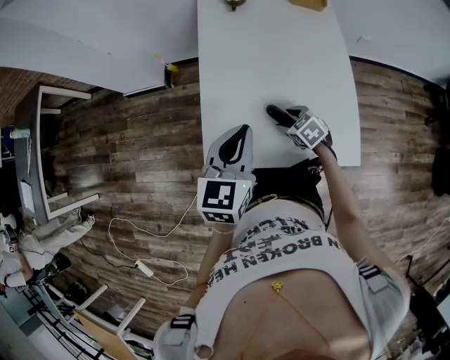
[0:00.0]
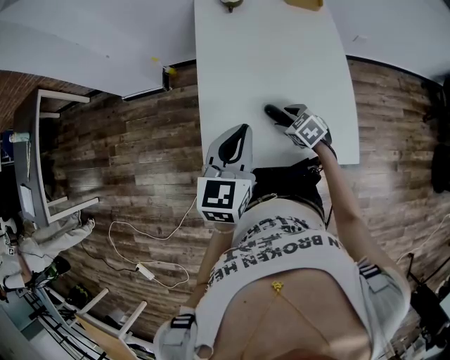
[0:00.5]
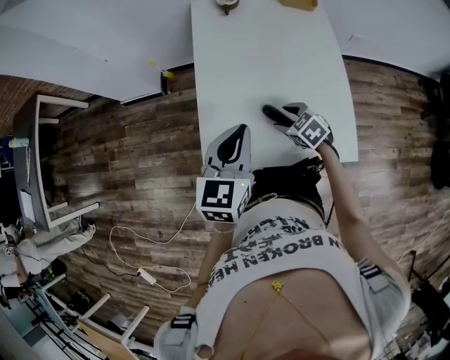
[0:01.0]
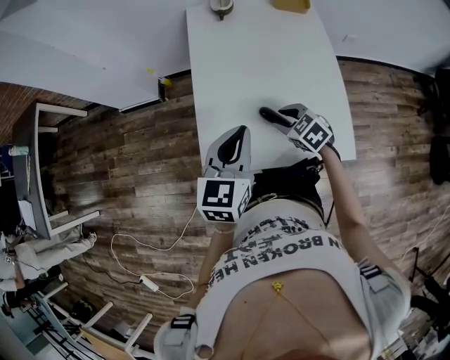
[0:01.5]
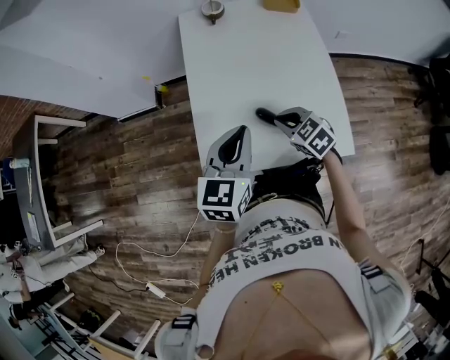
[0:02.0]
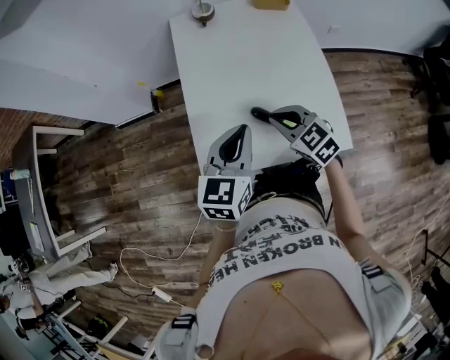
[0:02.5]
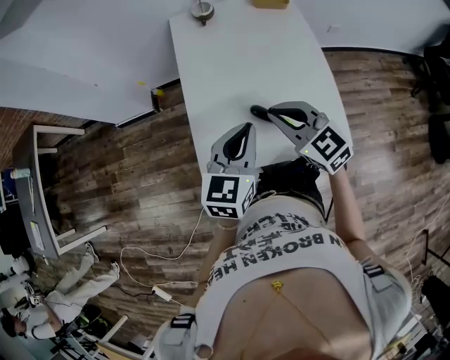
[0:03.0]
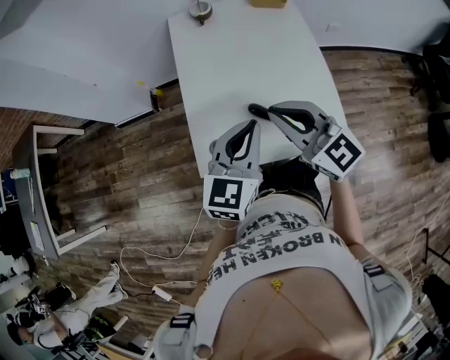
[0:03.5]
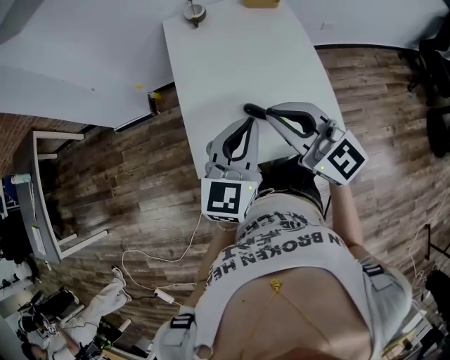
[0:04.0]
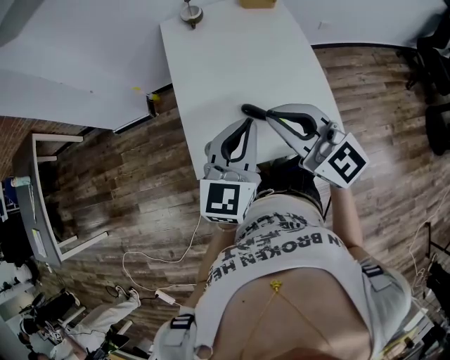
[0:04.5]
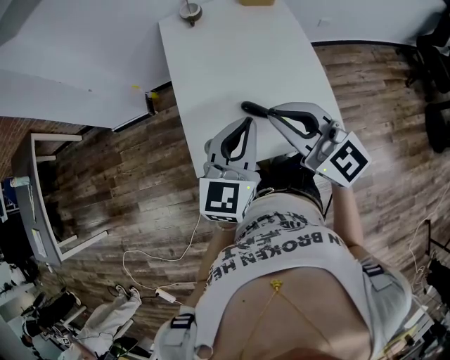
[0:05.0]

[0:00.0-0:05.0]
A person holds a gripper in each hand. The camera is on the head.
0:00.0 to 0:02.5: The right gripper moves upward, about 15 cm, rotates roughly 20 degrees, and closes.
0:02.5 to 0:05.0: The right gripper moves upward, about 15 cm, and angles its fingers upward, by about 30 degrees; the left gripper moves about 5 cm.

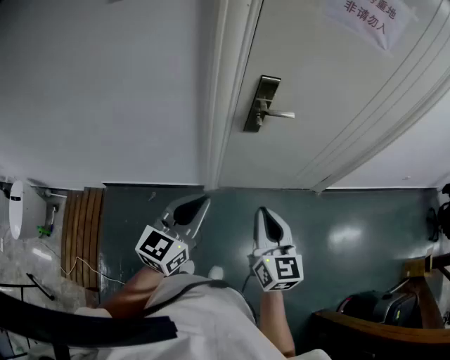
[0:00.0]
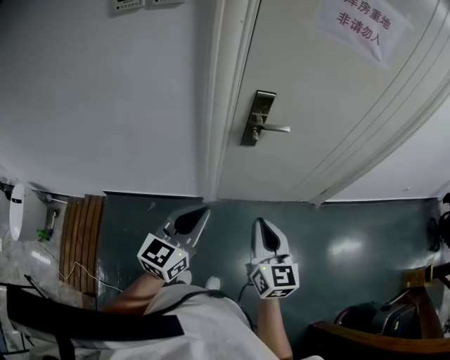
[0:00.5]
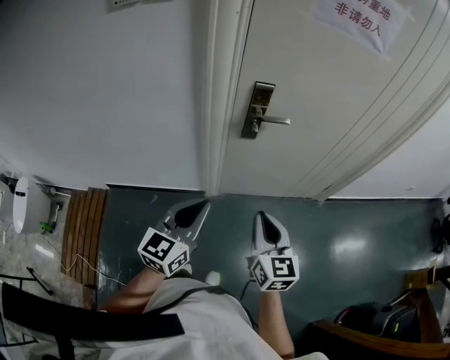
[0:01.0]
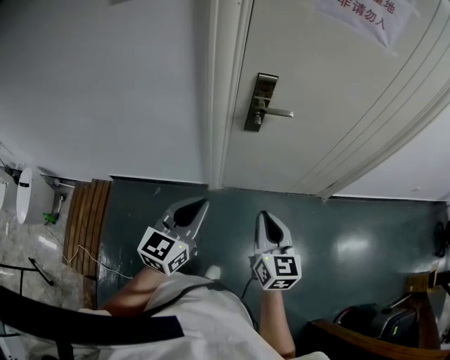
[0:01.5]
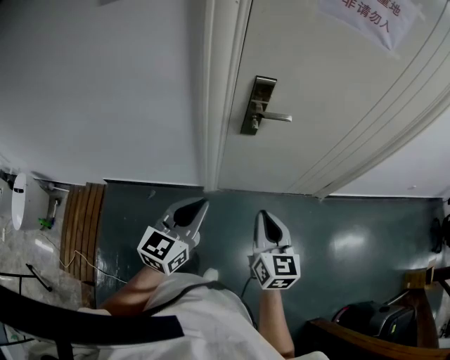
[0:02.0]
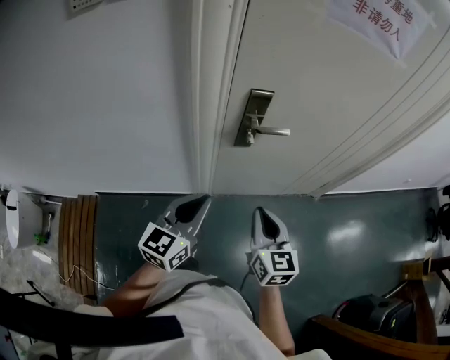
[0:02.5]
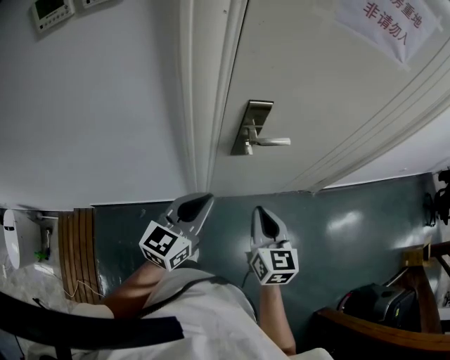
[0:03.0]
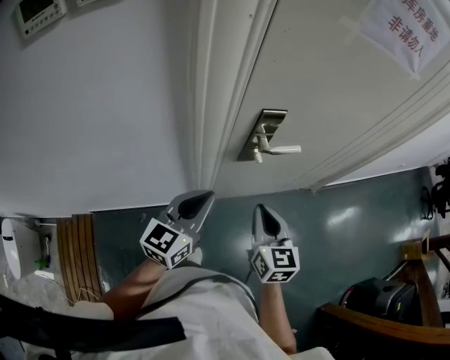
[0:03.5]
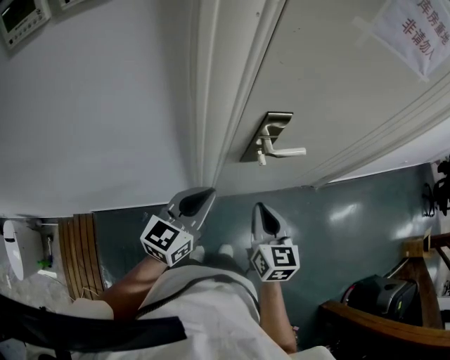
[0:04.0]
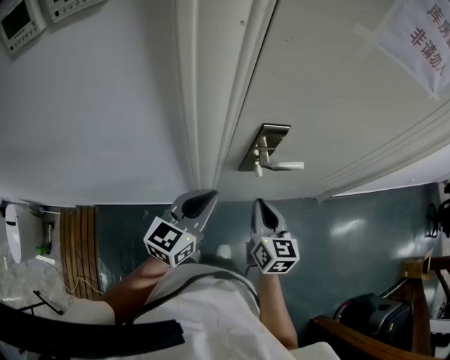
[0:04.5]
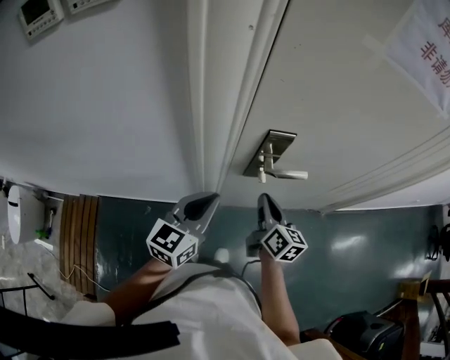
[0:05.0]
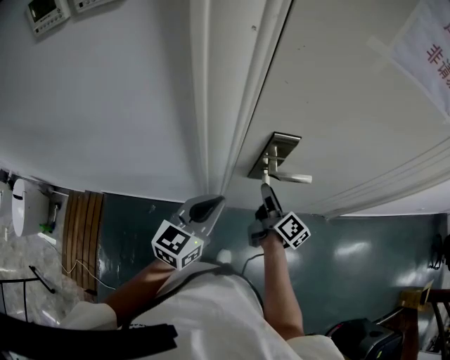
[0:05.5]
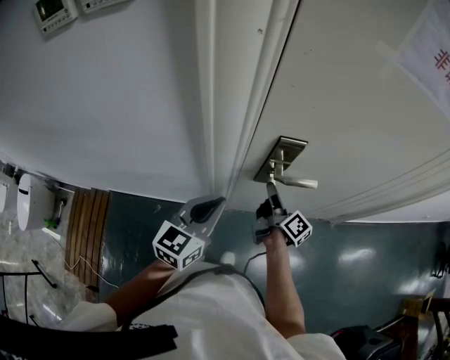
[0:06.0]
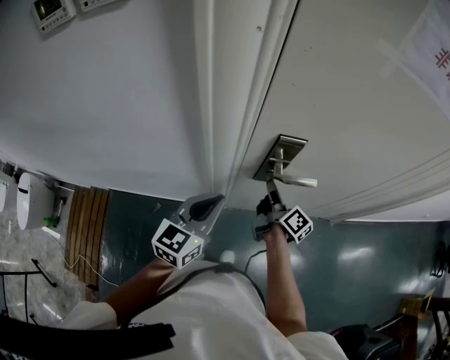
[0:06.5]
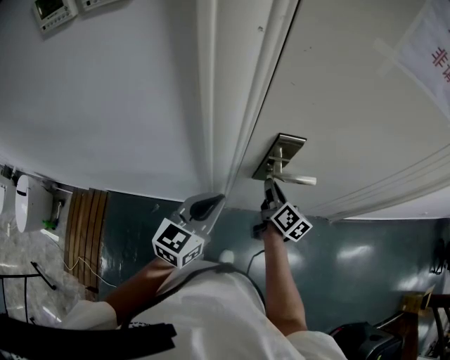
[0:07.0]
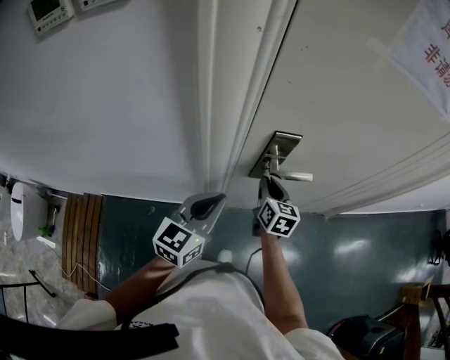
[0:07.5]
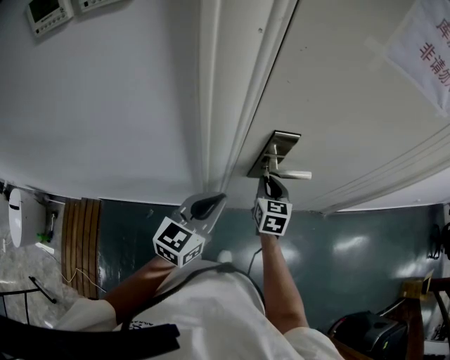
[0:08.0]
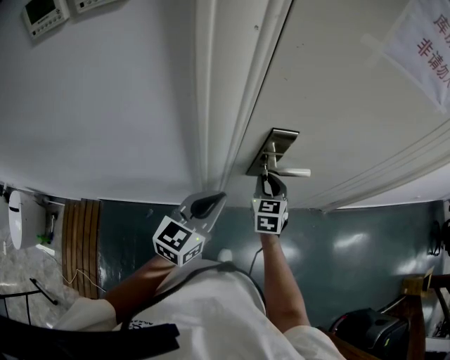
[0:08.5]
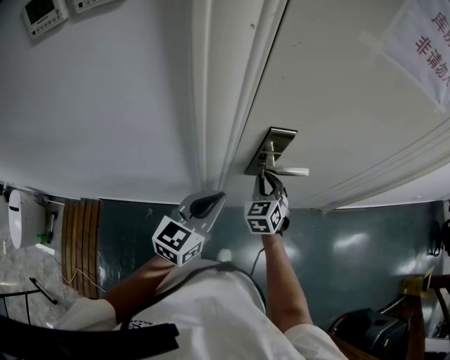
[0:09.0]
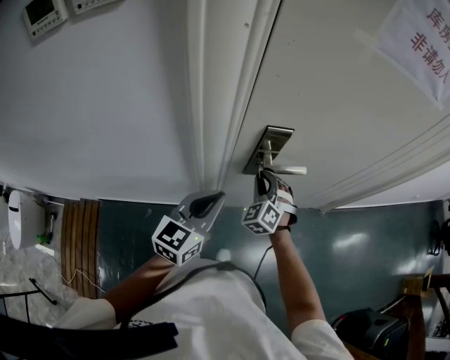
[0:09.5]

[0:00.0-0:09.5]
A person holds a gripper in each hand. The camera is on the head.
0:00.0 to 0:02.0: The right gripper shifts by roughly 5 cm, while the left gripper ends up some 5 cm from where it was.
0:02.0 to 0:04.0: Both grippers travel together forward and to the left, roughly 25 cm.
0:04.0 to 0:05.5: The right gripper shifts roughly 15 cm forward and downward, rotates around the line of its fingers by about 50 degrees, clockwise from behind, and opens its fingers.
0:05.5 to 0:07.5: The right gripper rotates around the line of its fingers by about 40 degrees, counterclockwise from behind, and closes up.
0:07.5 to 0:09.5: The right gripper rolls counterclockwise, seen from behind, by roughly 70 degrees.

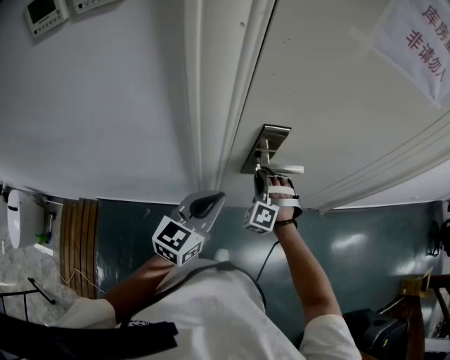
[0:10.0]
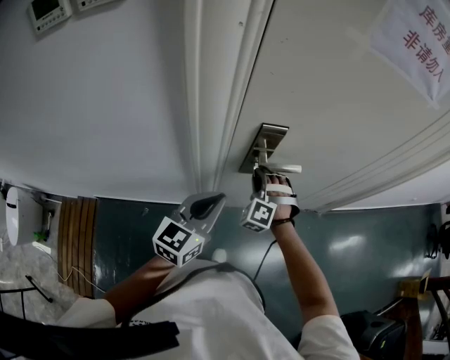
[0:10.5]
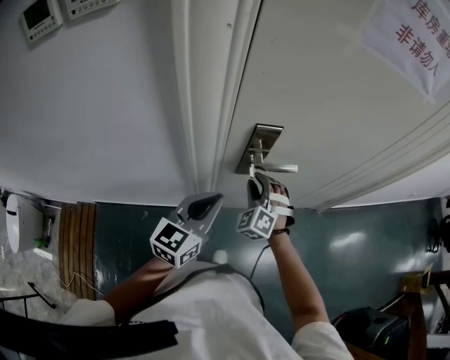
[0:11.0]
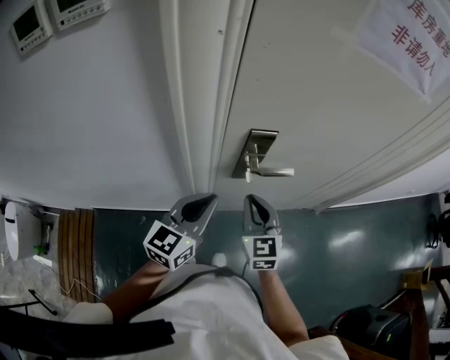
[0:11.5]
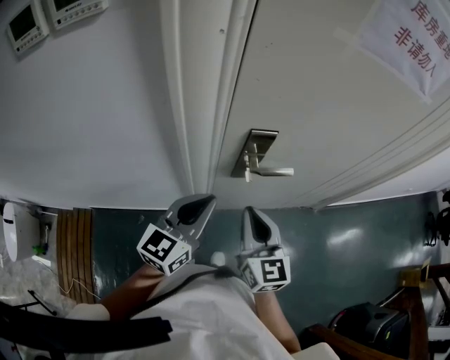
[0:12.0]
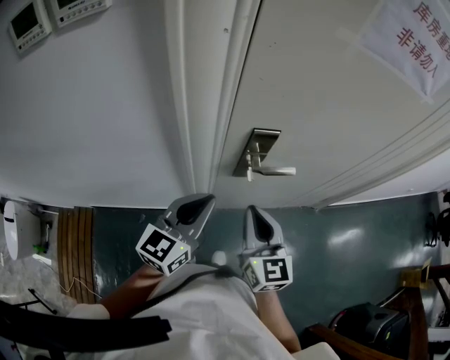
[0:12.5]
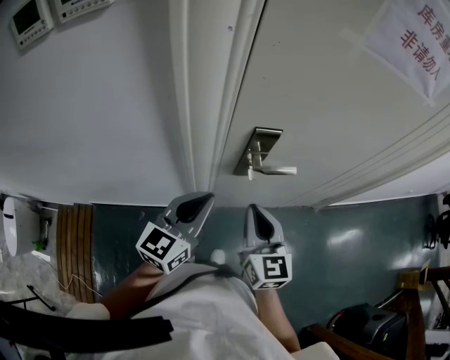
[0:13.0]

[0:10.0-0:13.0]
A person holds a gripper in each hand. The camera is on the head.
0:10.0 to 0:11.5: The right gripper moves upward and backward, some 10 cm, and rolls clockwise, seen from behind, by about 70 degrees.
0:11.5 to 0:13.0: The right gripper shifts about 5 cm upward.

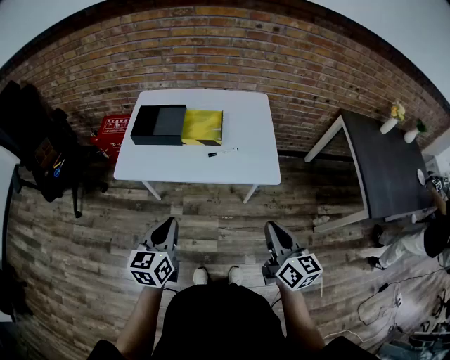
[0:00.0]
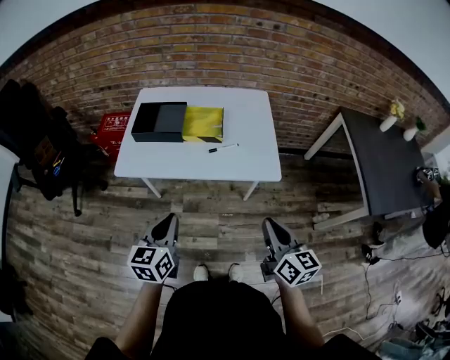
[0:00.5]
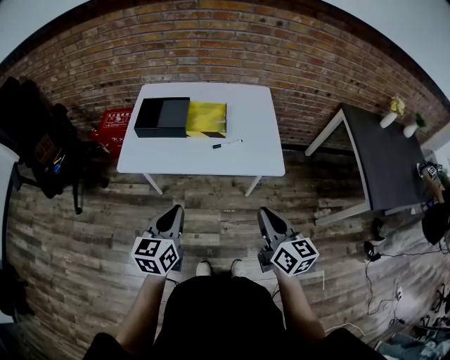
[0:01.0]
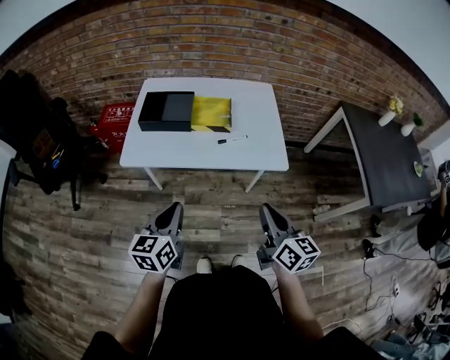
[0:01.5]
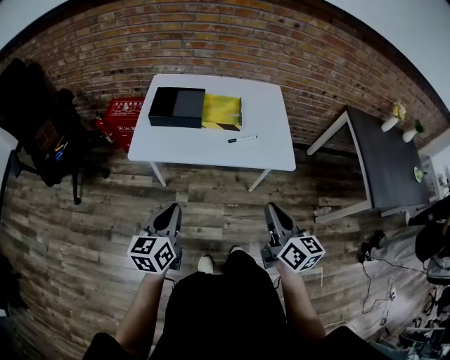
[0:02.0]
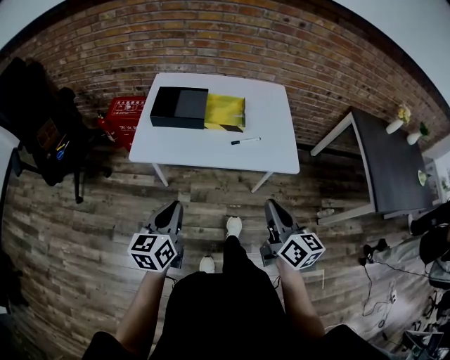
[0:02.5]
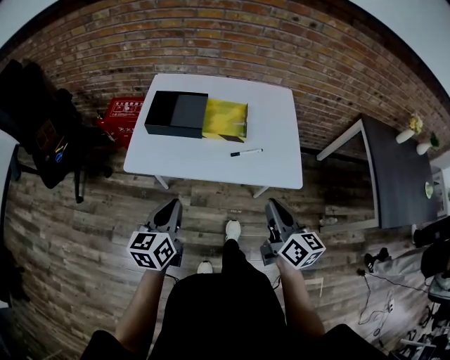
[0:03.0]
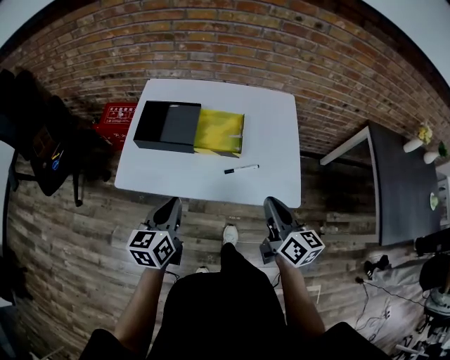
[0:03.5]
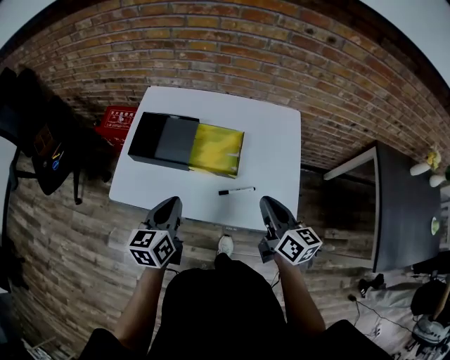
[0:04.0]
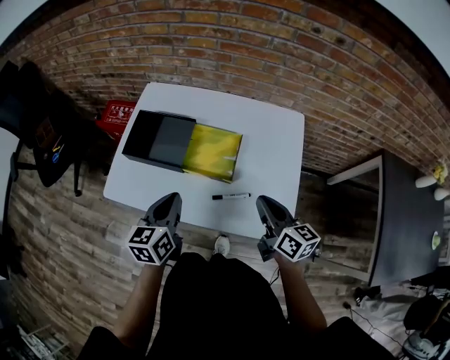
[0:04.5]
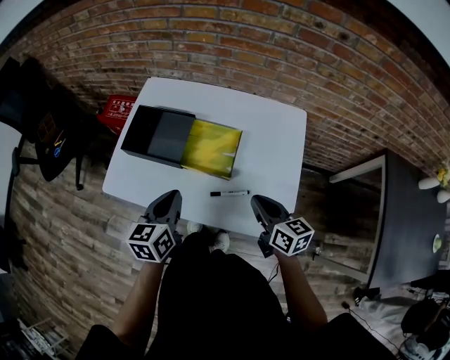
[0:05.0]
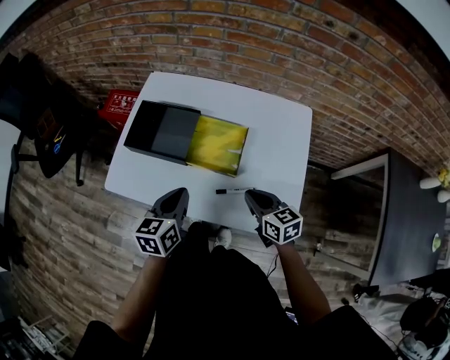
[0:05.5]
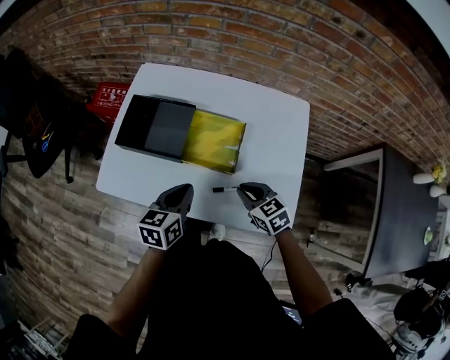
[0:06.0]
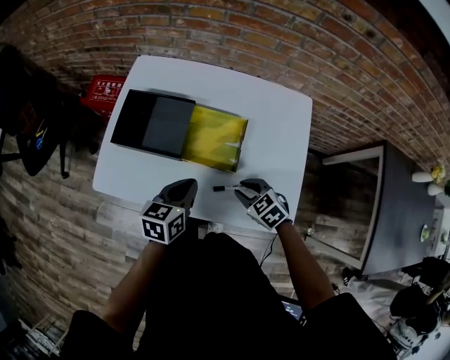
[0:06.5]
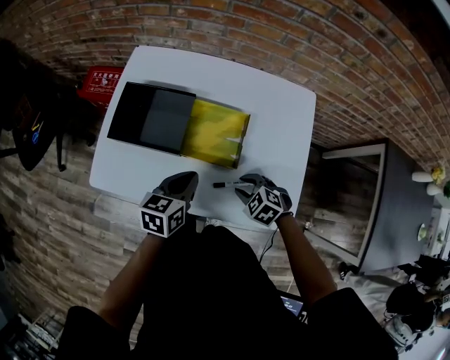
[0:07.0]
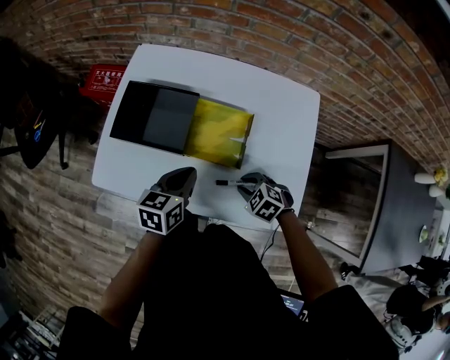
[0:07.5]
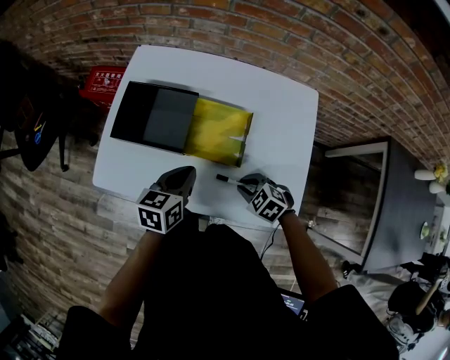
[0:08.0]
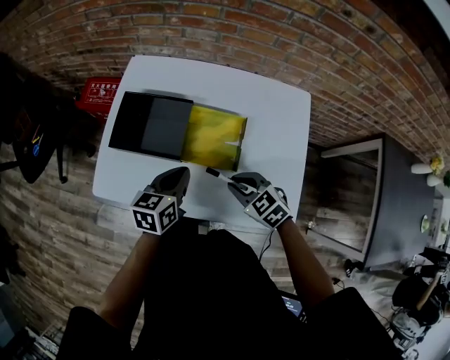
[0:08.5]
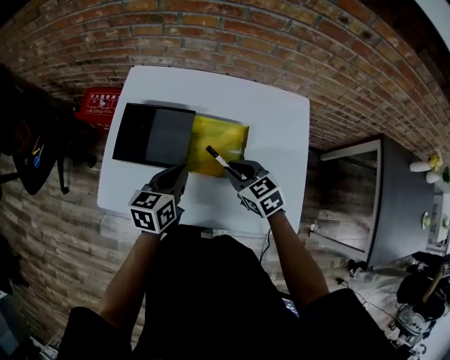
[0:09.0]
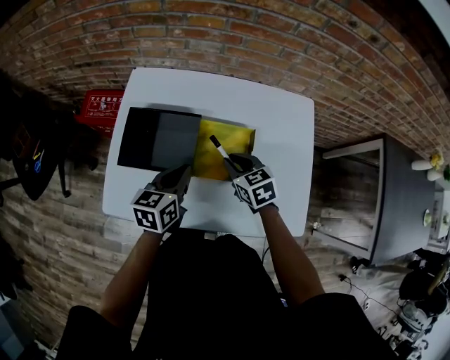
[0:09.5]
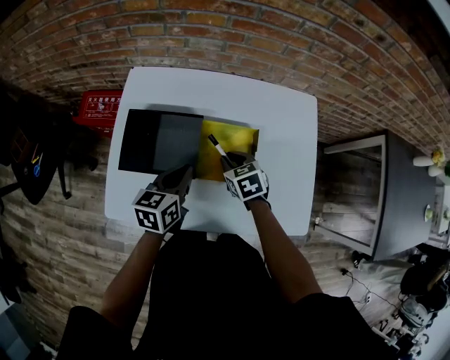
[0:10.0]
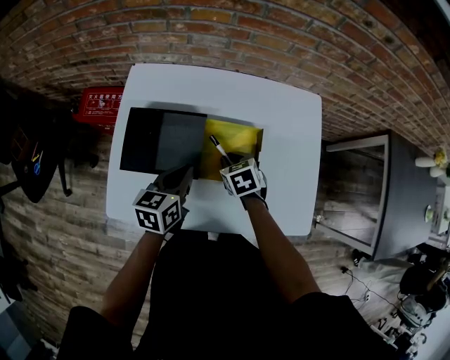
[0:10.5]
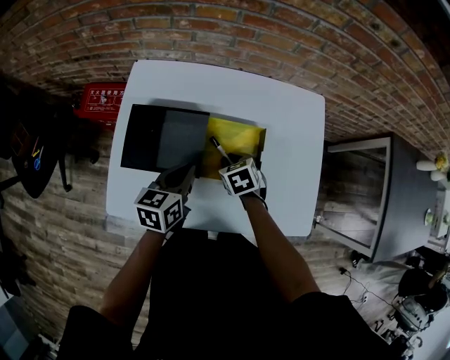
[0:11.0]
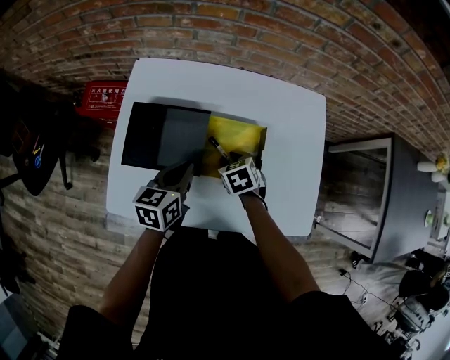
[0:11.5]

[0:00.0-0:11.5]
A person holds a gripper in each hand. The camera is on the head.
0:00.0 to 0:02.0: The grippers both shift to the left by roughly 10 cm.
0:02.0 to 0:04.0: Both grippers move forward, about 30 cm.
0:04.0 to 0:06.0: The right gripper is displaced downward and forward by about 15 cm, and swivels roughly 50 degrees; the left gripper is displaced downward and to the right by some 10 cm.
0:06.0 to 0:07.5: The right gripper moves downward, roughly 10 cm, and rotates some 40 degrees.
0:07.5 to 0:09.5: The left gripper goes approximately 5 cm forward, while the right gripper travels forward and upward by some 15 cm, and rotates roughly 40 degrees.
0:09.5 to 0:11.5: The right gripper shifts approximately 10 cm downward.
